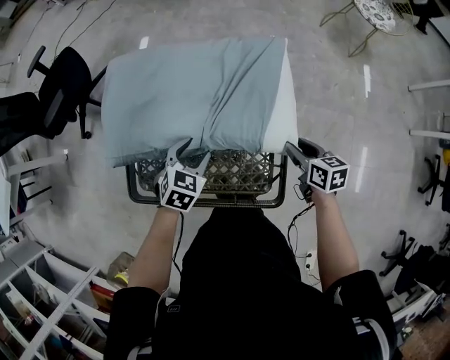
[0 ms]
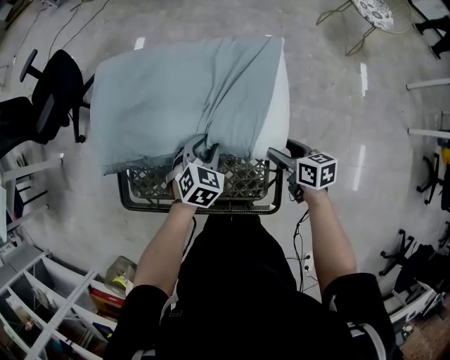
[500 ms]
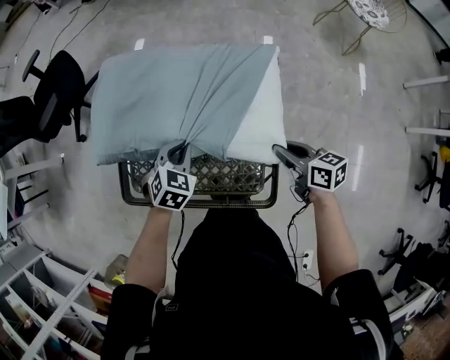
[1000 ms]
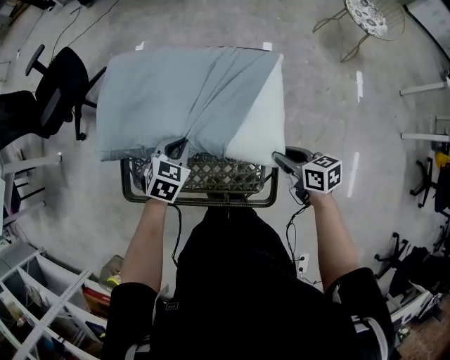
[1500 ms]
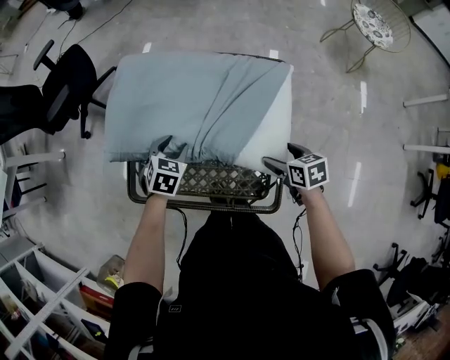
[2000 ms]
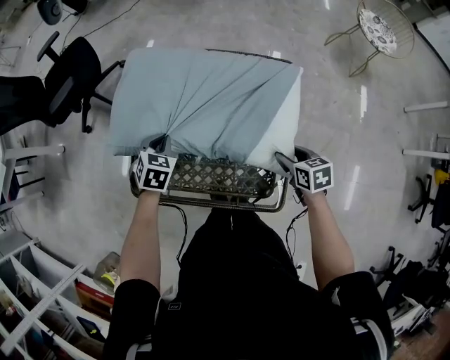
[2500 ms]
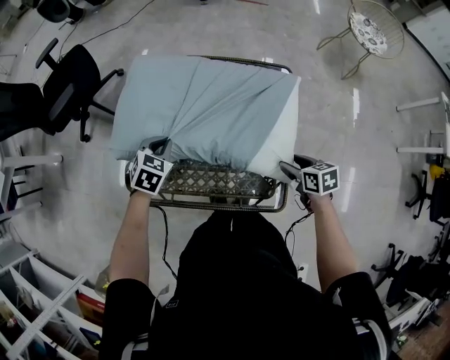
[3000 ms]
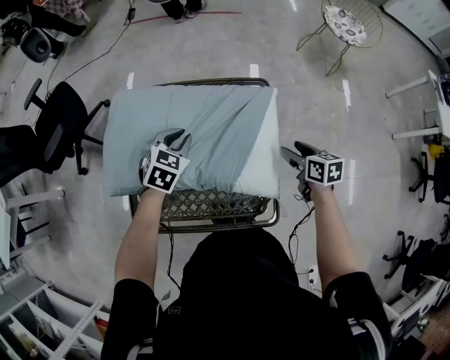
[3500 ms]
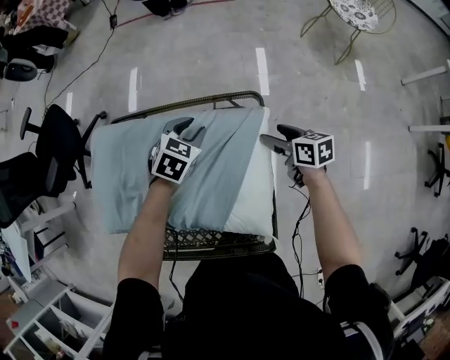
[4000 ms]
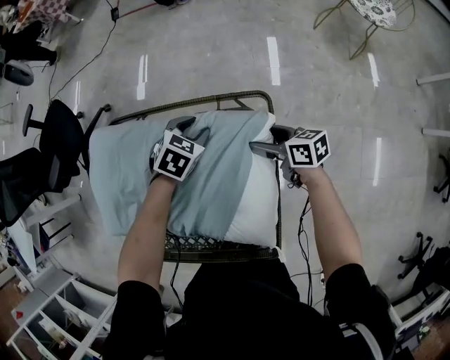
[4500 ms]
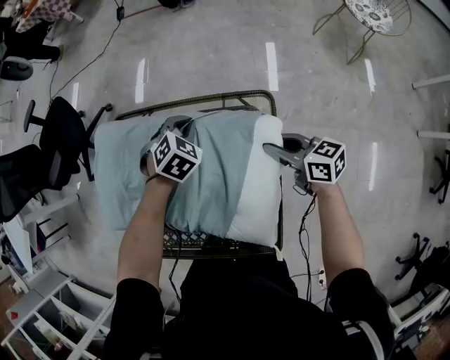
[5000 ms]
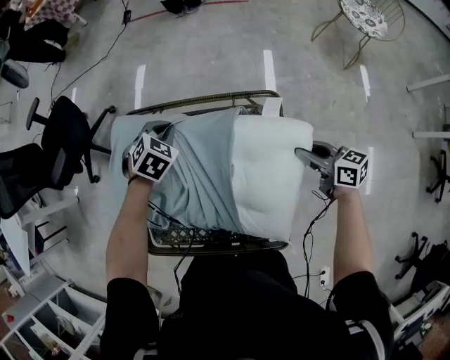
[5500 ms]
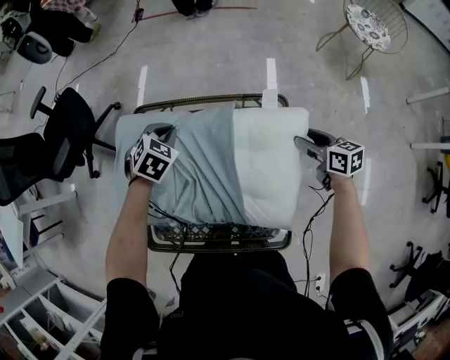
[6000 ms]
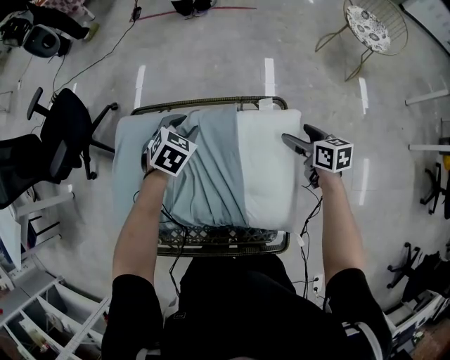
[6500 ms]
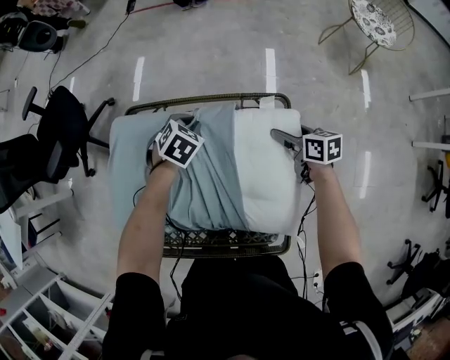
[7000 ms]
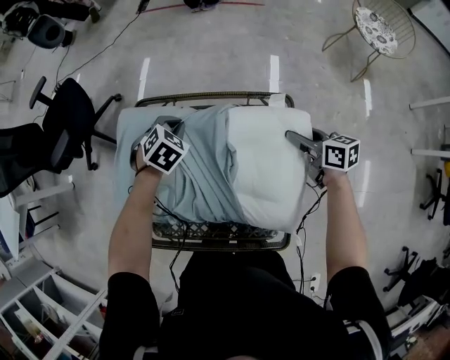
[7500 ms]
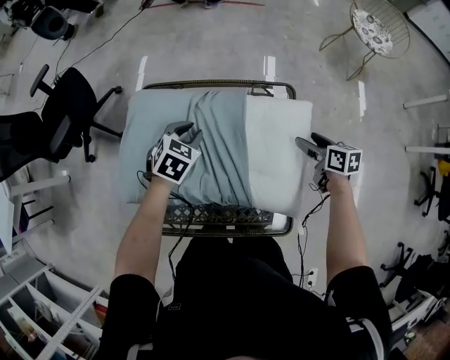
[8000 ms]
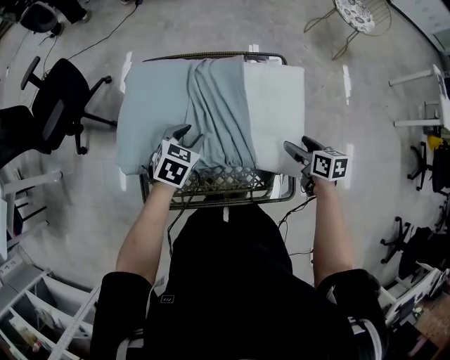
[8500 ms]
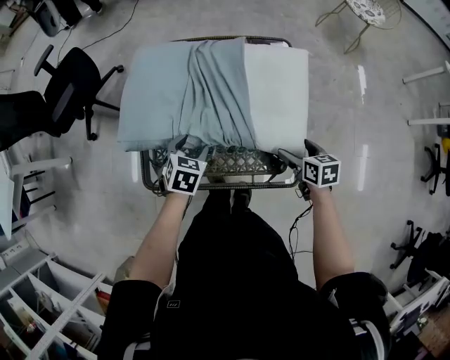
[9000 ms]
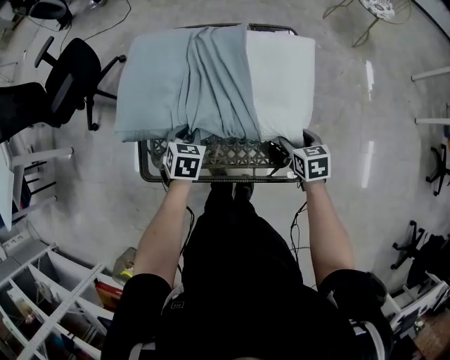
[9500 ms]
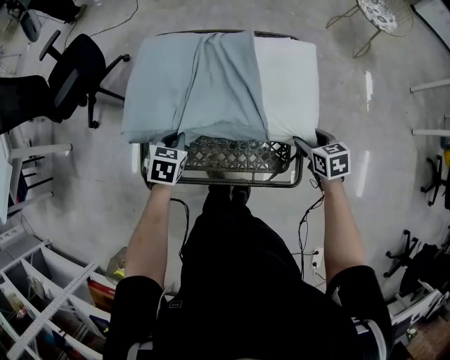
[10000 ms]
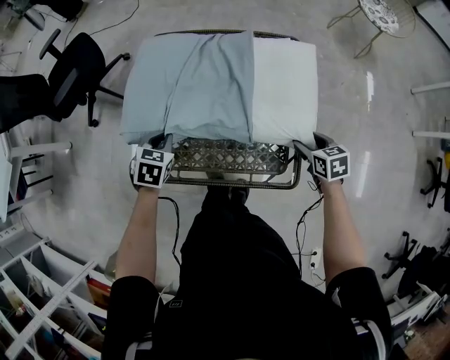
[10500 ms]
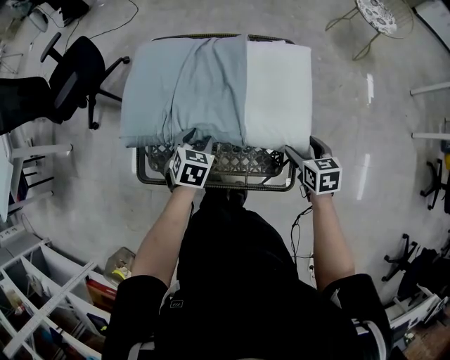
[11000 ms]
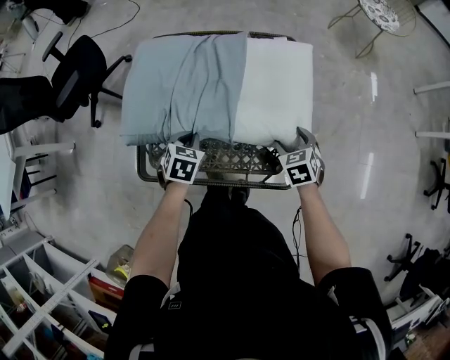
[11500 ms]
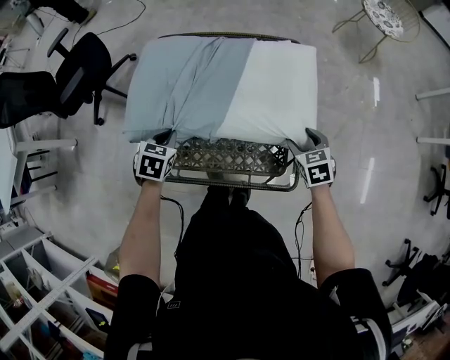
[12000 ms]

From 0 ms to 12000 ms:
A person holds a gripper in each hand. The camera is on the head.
From 0 ms to 2000 ms: The left gripper shifts about 5 cm to the left, and closes, then reopens. Meanwhile the right gripper moves up and down over some 5 cm, changing direction 2 times, and opens.
From 2000 ms to 4000 ms: The right gripper travels forward and to the right by some 25 cm, and swivels about 20 degrees; the left gripper moves to the right and forward, some 30 cm, changes its angle by some 20 degrees, and closes, then opens again.
From 4000 ms to 6000 ms: The right gripper shifts about 5 cm upward. Meanwhile the left gripper heads to the left, covering some 20 cm, and closes.
From 6000 ms to 8000 ms: The left gripper goes roughly 10 cm backward, and opens.
From 8000 ms to 10000 ms: The left gripper moves backward and to the left, approximately 25 cm, and closes its fingers, while the right gripper is displaced backward by roughly 20 cm, and changes its angle by about 30 degrees.
From 10000 ms to 12000 ms: The left gripper moves about 10 cm to the right and comes back, and opens, then closes once more.

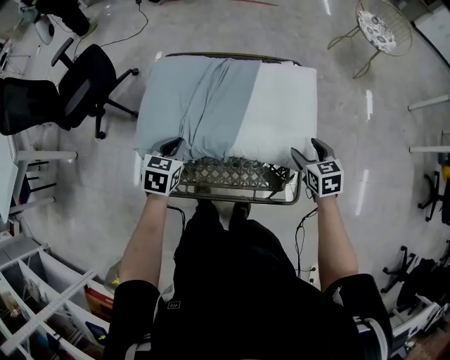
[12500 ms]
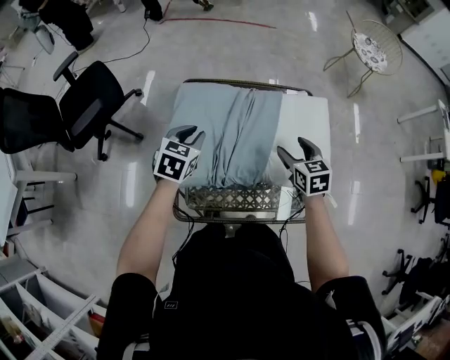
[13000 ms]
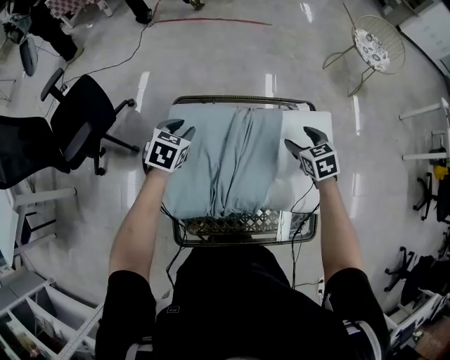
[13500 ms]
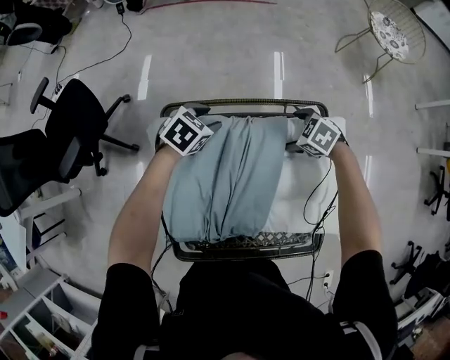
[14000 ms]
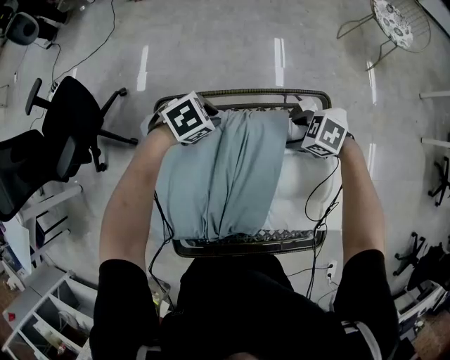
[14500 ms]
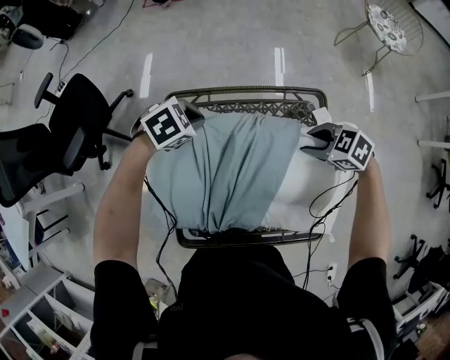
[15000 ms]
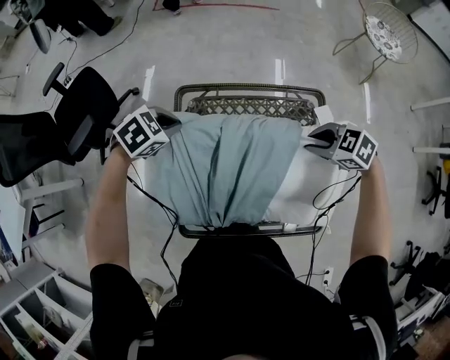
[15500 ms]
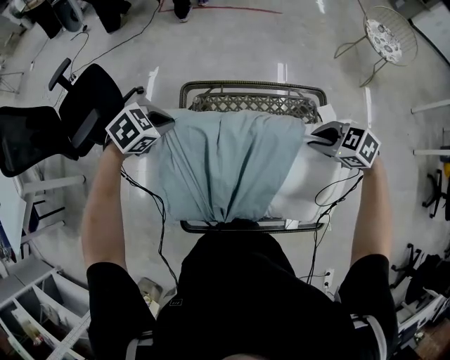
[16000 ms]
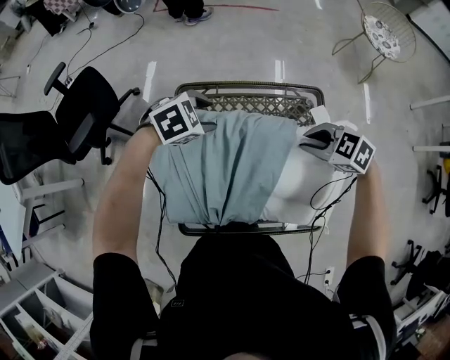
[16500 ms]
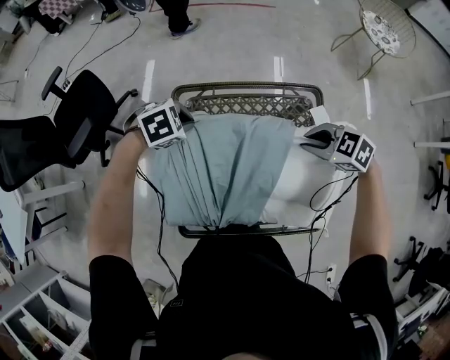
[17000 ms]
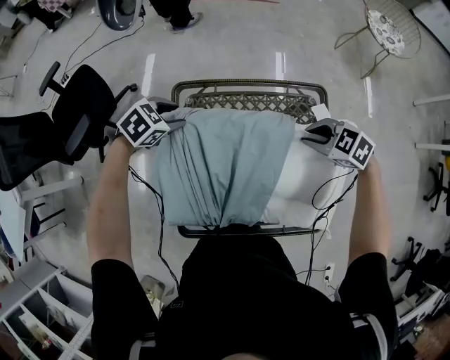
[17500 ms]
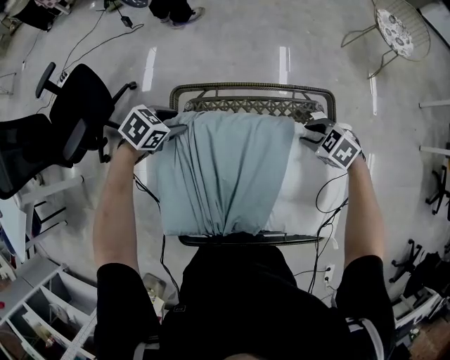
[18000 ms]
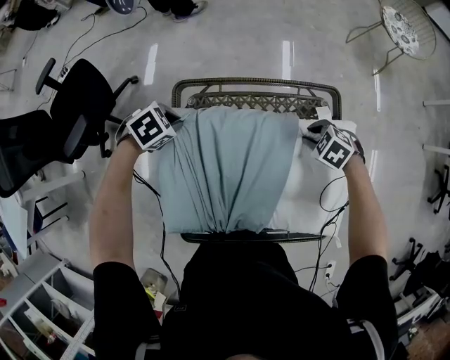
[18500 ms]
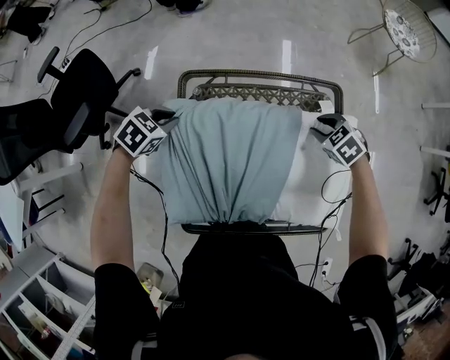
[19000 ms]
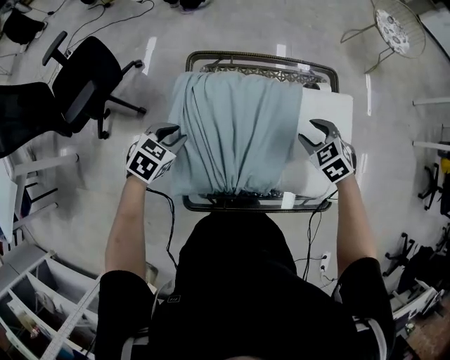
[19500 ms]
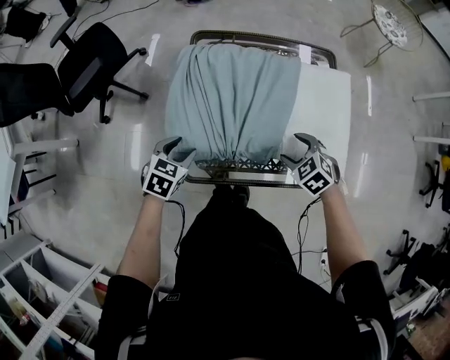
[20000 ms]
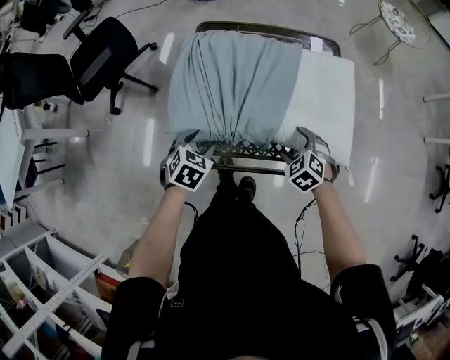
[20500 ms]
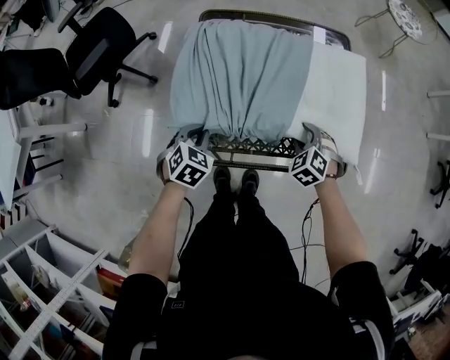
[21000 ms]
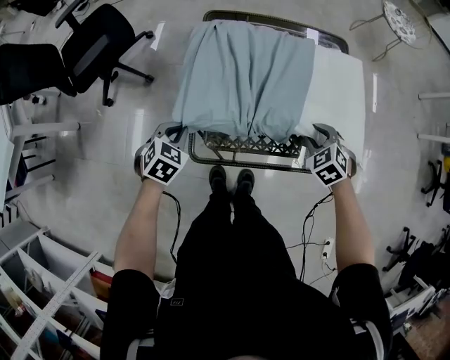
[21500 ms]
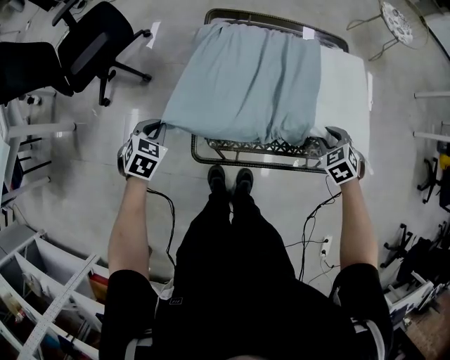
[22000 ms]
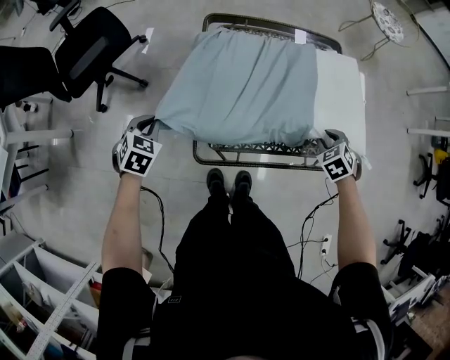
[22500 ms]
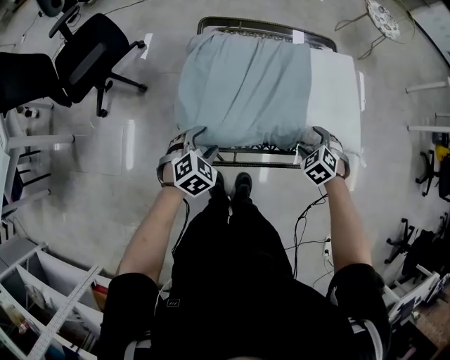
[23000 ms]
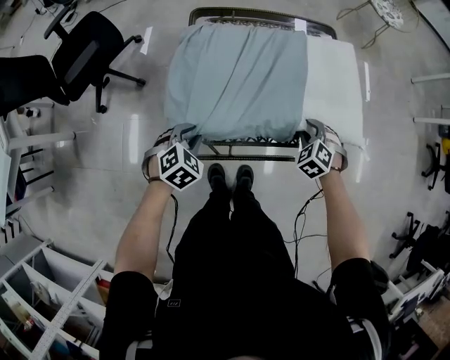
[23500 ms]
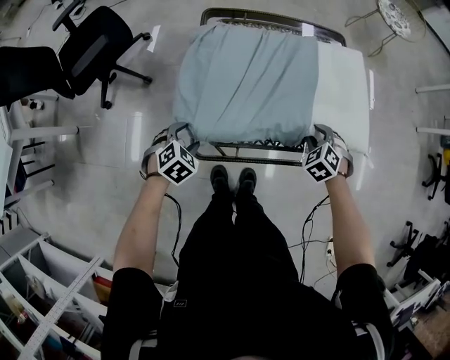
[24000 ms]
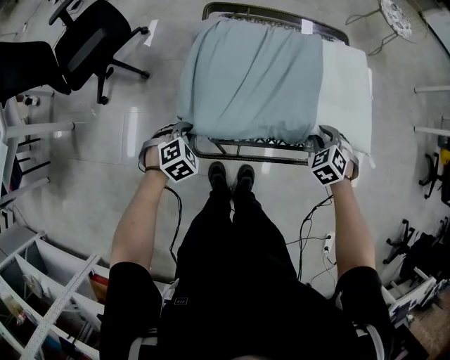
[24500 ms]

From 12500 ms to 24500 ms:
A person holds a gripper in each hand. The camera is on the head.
From 12500 ms to 14500 ms: The right gripper shifts by approximately 30 cm, and changes its angle by about 50 degrees, while the left gripper moves about 35 cm, rotates roughly 60 degrees, and opens, then closes again.
From 14500 ms to 16500 ms: The grippers both shift upward by approximately 15 cm. The right gripper closes up; the left gripper opens its fingers.
From 16500 ms to 18500 ms: The right gripper shifts some 15 cm downward, and rotates roughly 20 degrees. Meanwhile the left gripper shifts by roughly 15 cm, and closes up.
From 18500 ms to 20500 ms: The right gripper moves about 10 cm upward and comes back, changes its angle by approximately 20 degrees, and opens its fingers; the left gripper ends up roughly 35 cm from where it was, rotates some 40 degrees, and opens up.
From 20500 ms to 22500 ms: The left gripper is displaced to the left by about 20 cm, and closes; the right gripper goes approximately 5 cm to the right, and closes up.
From 22500 ms to 24500 ms: The right gripper opens, then closes once more; the left gripper goes approximately 15 cm to the right and downward, changes its angle by about 30 degrees, and opens, then closes again.

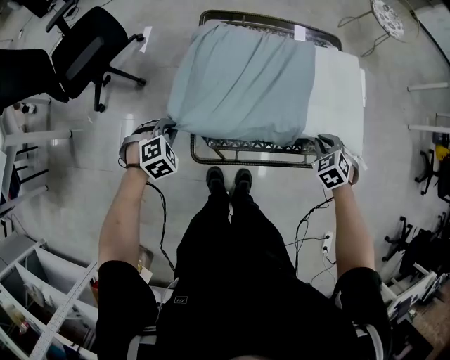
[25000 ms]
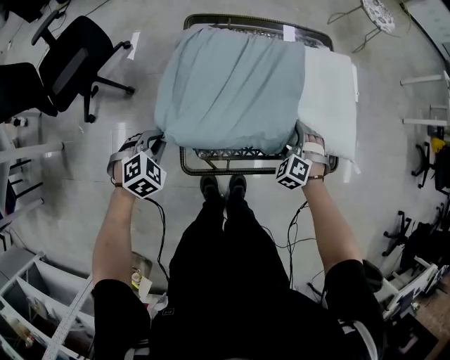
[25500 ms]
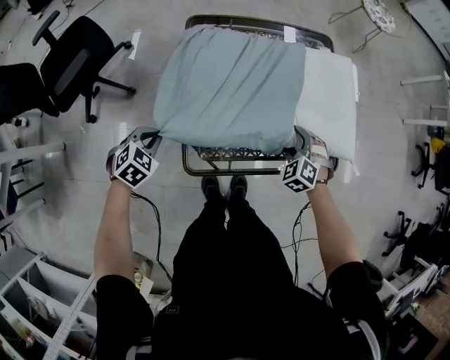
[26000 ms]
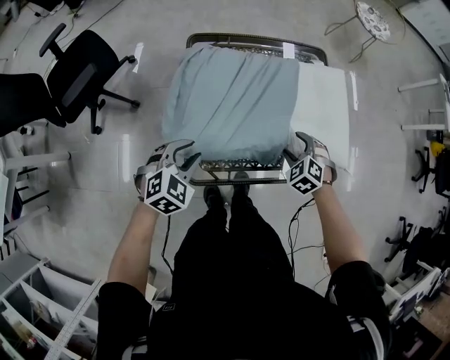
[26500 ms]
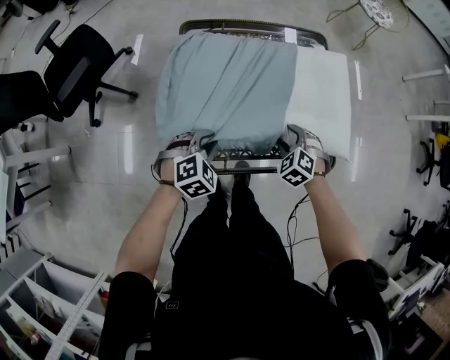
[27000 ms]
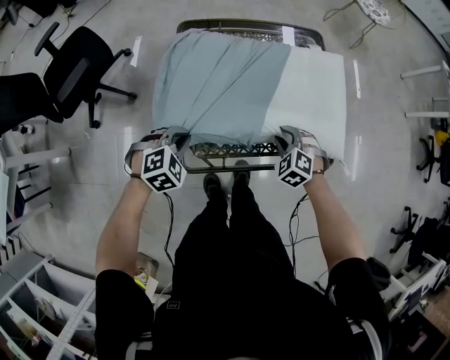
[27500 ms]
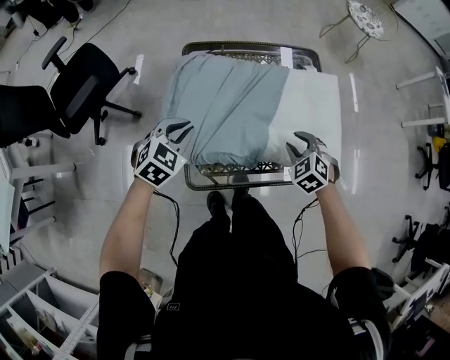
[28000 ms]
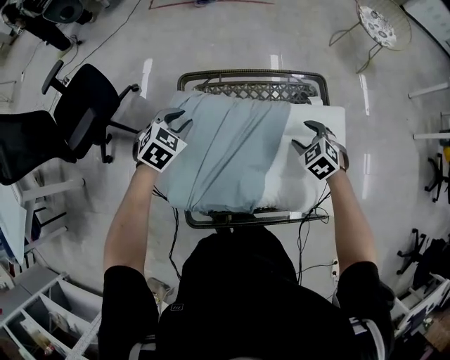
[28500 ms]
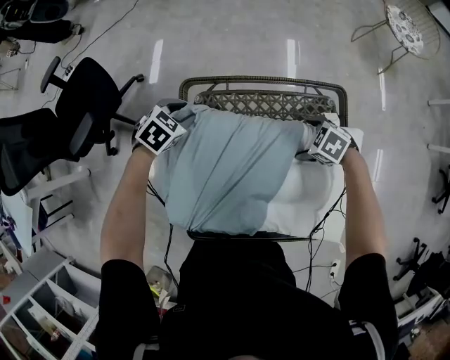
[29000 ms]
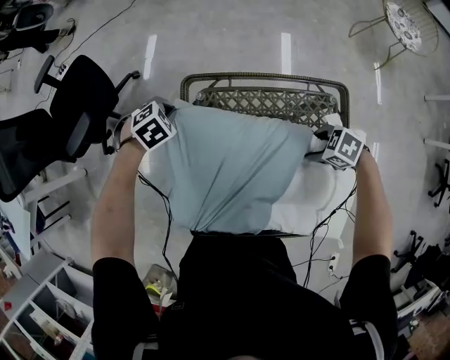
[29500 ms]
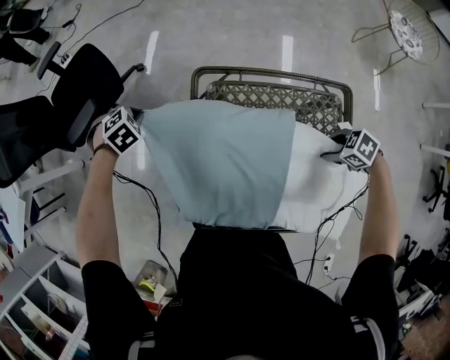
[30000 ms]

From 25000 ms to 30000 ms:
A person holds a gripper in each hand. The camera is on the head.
From 25000 ms to 27500 ms: The right gripper heads to the left, covering approximately 10 cm, and opens, then closes again, while the left gripper shifts roughly 10 cm to the right and upward, and opens and closes again.
From 27500 ms to 30000 ms: The left gripper travels upward and back again, roughly 5 cm each way, swivels roughly 30 degrees, and opens and closes again; the right gripper moves up and down over approximately 10 cm, changing direction 2 times, swivels approximately 50 degrees, and opens, then closes once more.
